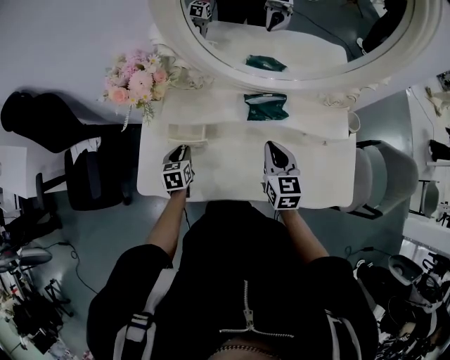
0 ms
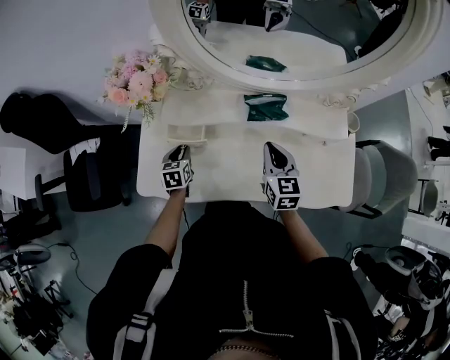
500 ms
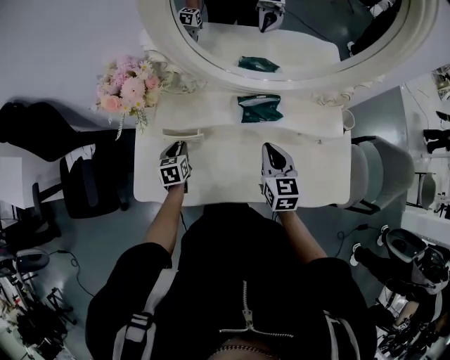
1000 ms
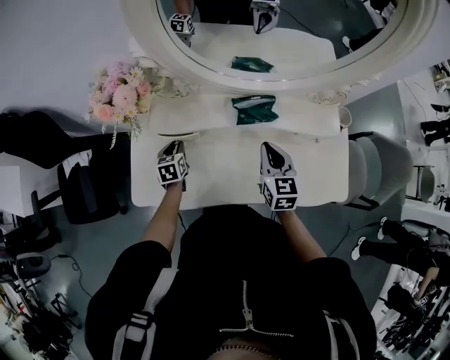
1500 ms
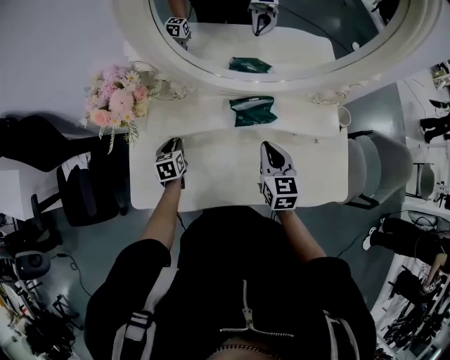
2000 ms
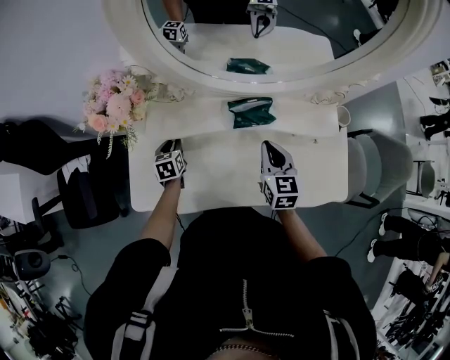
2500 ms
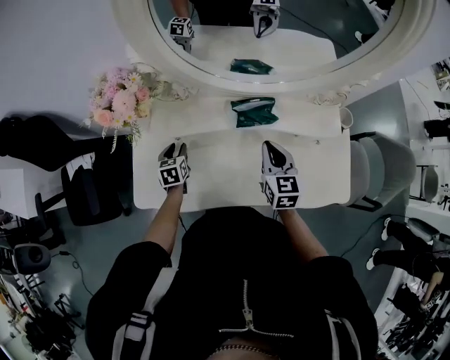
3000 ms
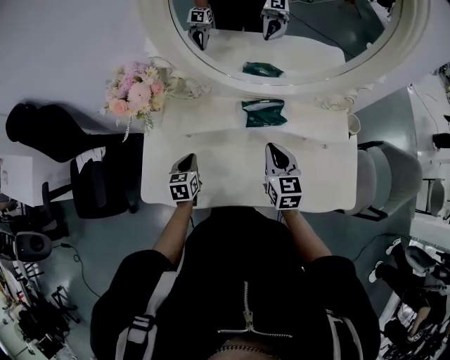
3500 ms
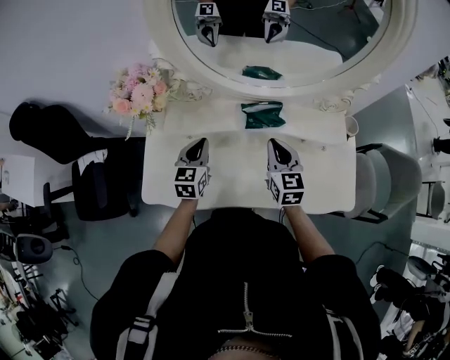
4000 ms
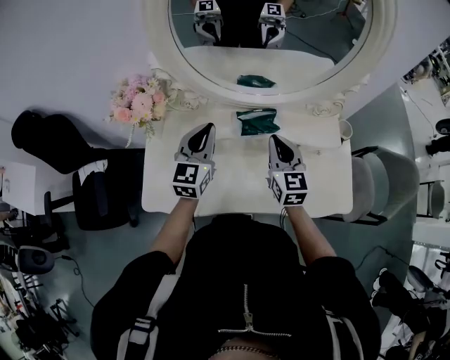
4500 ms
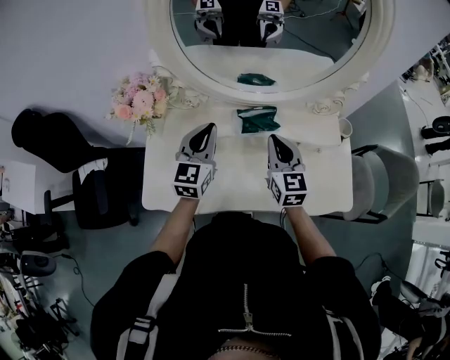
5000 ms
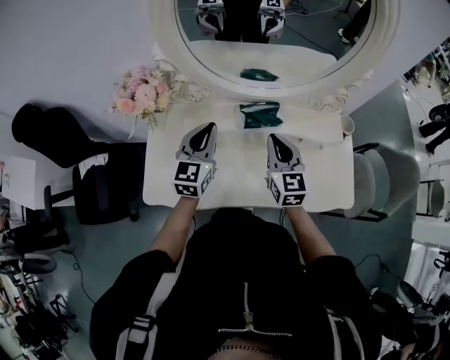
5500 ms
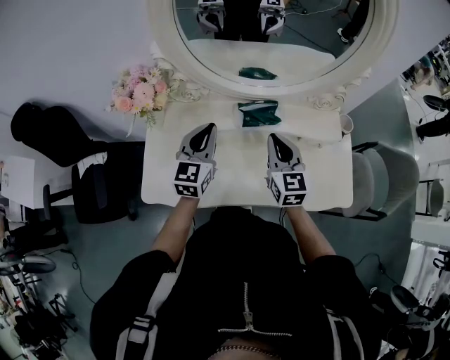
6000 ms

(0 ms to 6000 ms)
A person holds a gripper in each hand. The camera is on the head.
0 ms - 2000 ms: The left gripper is displaced forward by about 5 cm.
2000 ms - 4000 ms: The left gripper shifts roughly 15 cm upward and to the right, changes its angle by about 30 degrees, and closes up.
4000 ms - 6000 ms: The left gripper is displaced upward by about 10 cm; the right gripper shifts about 5 cm upward.

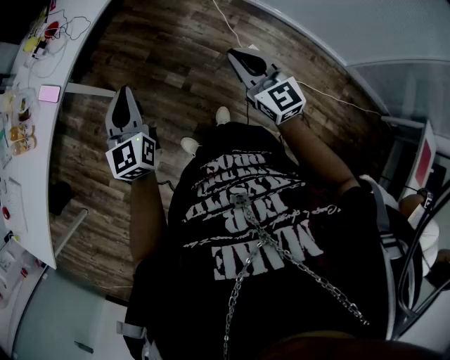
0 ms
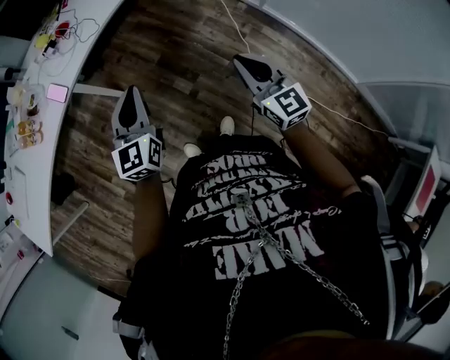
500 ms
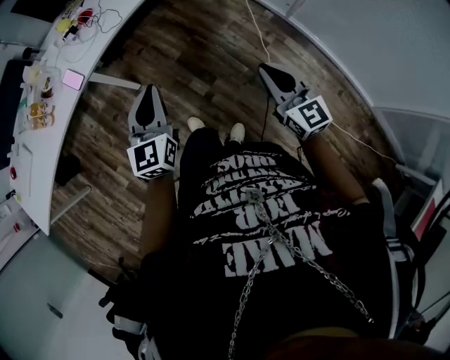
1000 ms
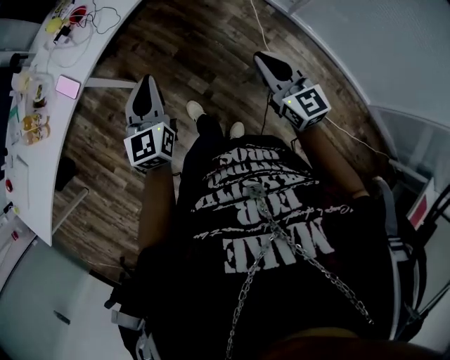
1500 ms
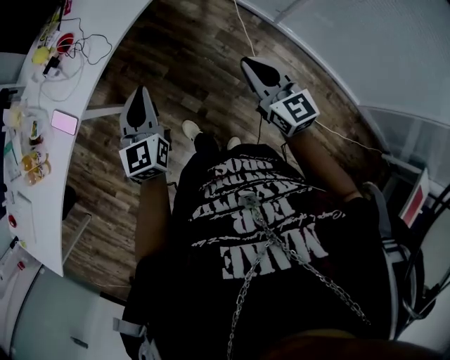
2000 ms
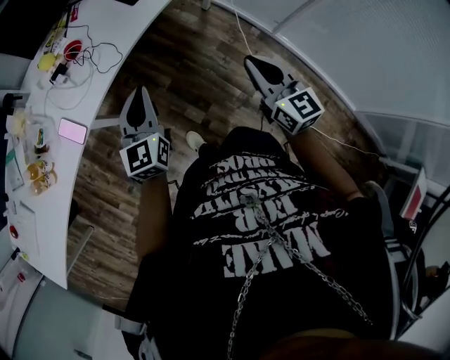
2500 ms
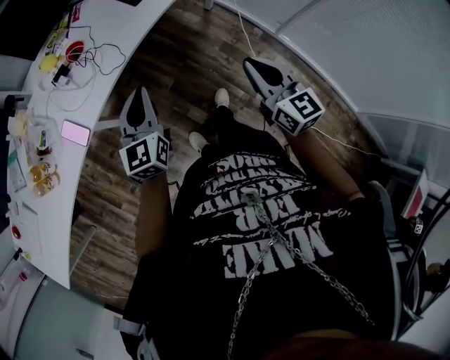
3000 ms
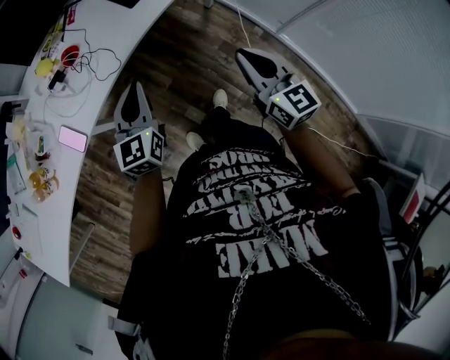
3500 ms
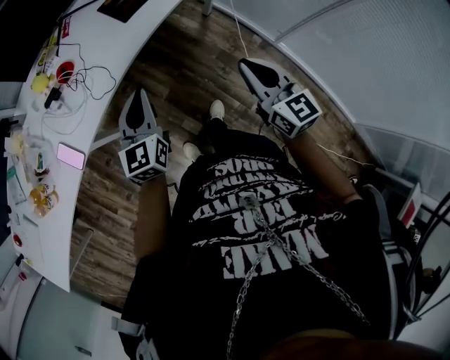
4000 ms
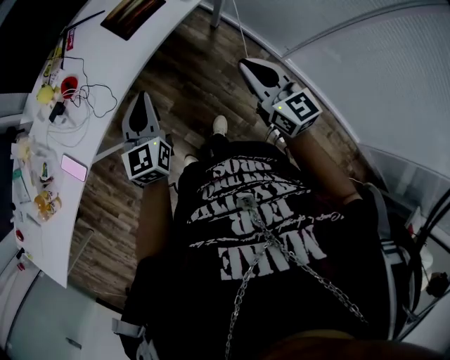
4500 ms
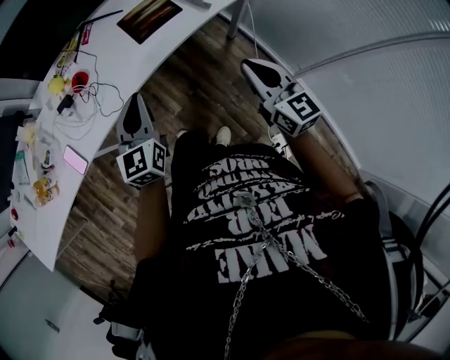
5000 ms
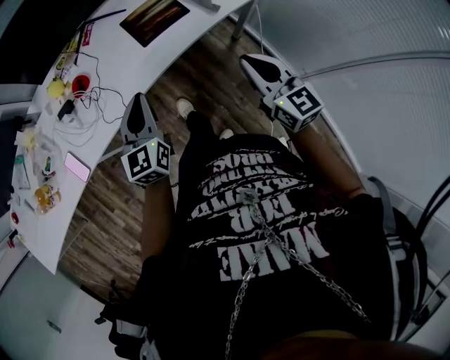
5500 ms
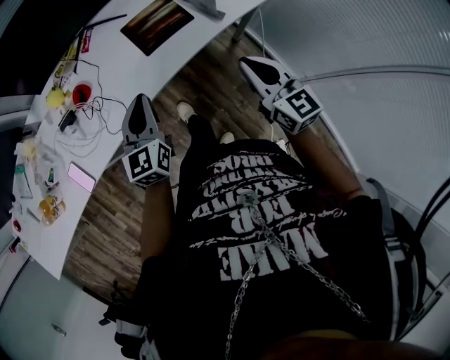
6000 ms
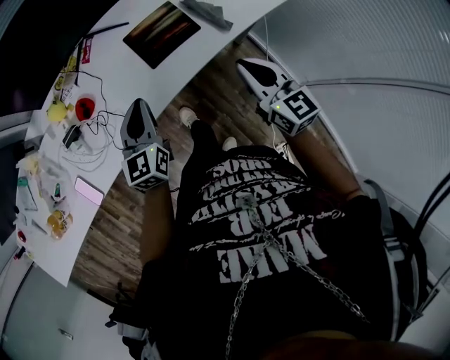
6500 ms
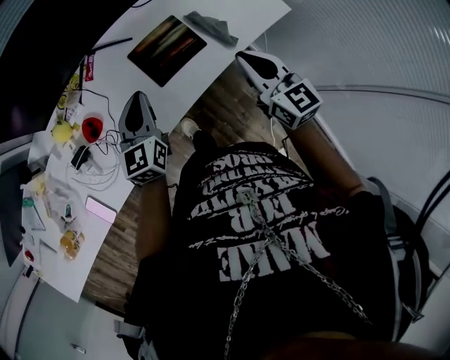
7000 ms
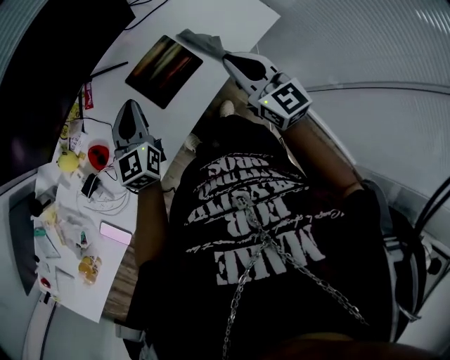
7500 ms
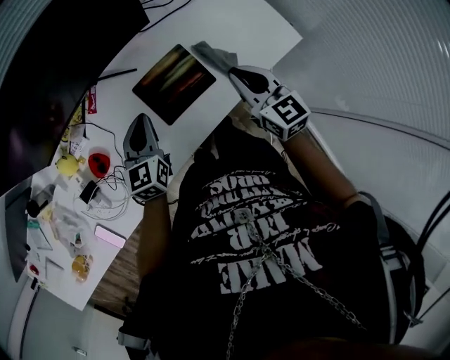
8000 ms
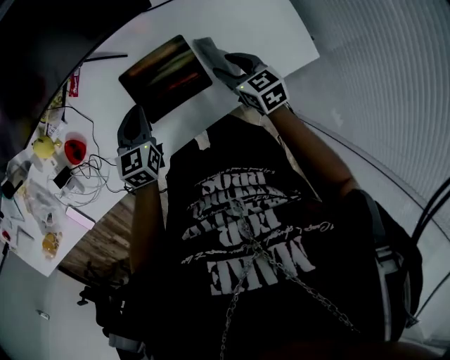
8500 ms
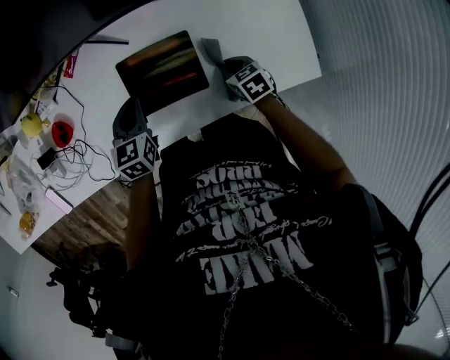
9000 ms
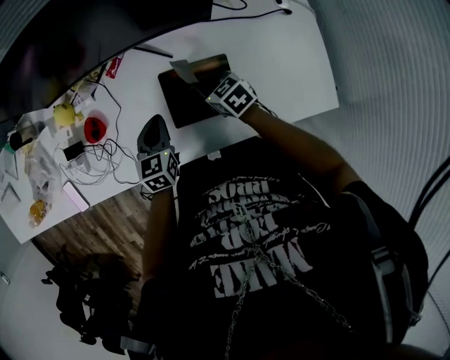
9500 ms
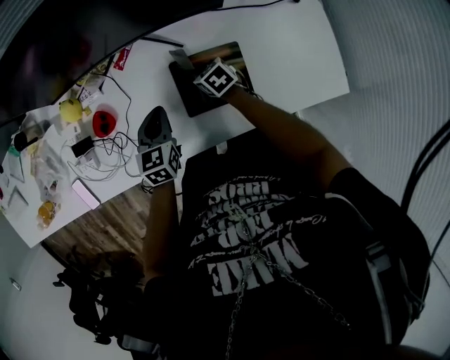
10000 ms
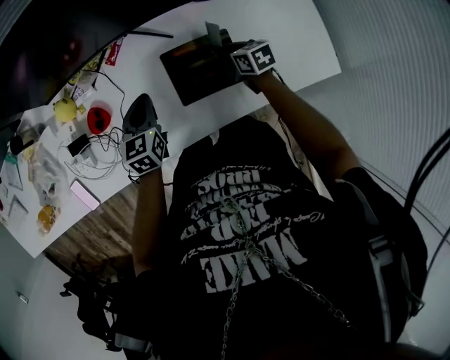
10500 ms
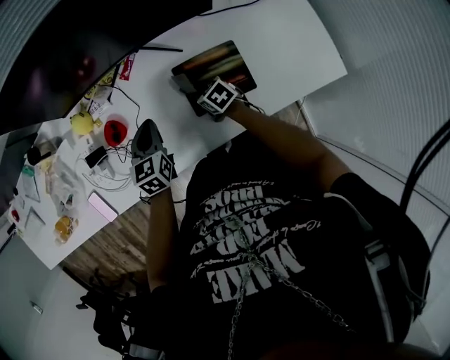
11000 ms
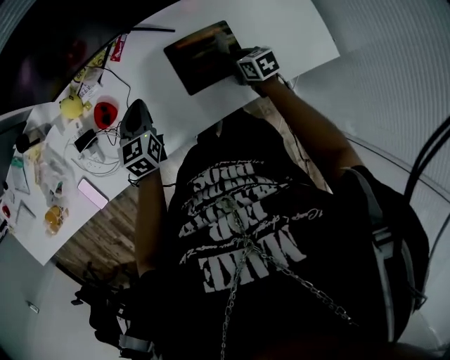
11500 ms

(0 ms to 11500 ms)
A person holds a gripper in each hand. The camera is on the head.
0 ms - 2000 ms: Both grippers travel together forward, about 25 cm.
2000 ms - 4000 ms: Both grippers travel together forward, about 15 cm.
4000 ms - 6000 ms: Both grippers travel together forward, some 20 cm.
6000 ms - 7500 ms: The grippers both shift forward by some 25 cm.
7500 ms - 9500 ms: The left gripper heads downward, covering approximately 15 cm, and swivels about 30 degrees. Meanwhile the right gripper shifts roughly 25 cm downward, tips its fingers downward by roughly 30 degrees, and opens and closes again.
9500 ms - 11500 ms: The right gripper moves left and right over roughly 15 cm, changing direction 2 times, and swivels approximately 20 degrees, while the left gripper travels to the left by about 10 cm.

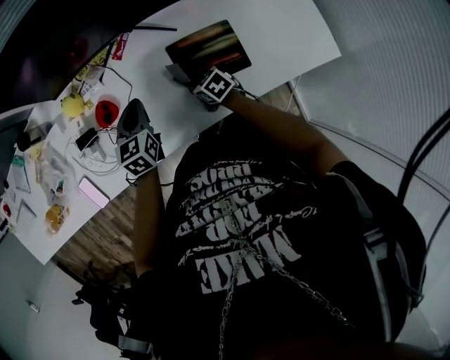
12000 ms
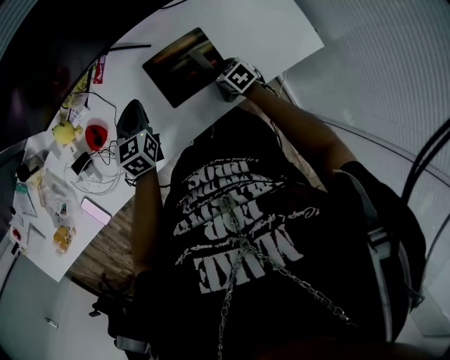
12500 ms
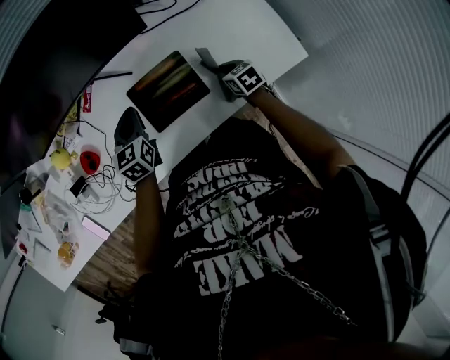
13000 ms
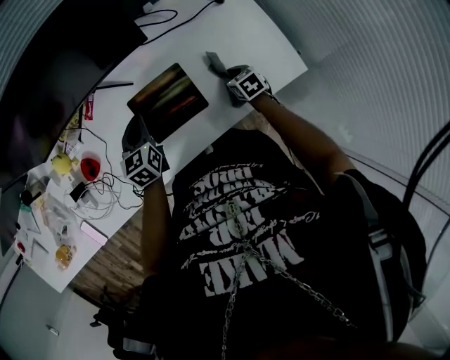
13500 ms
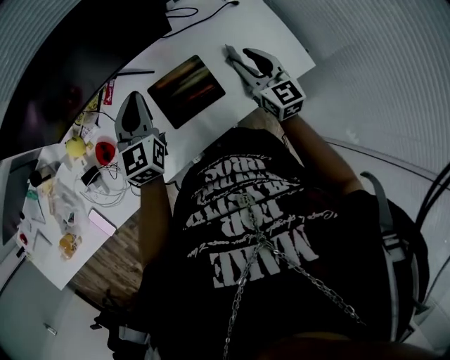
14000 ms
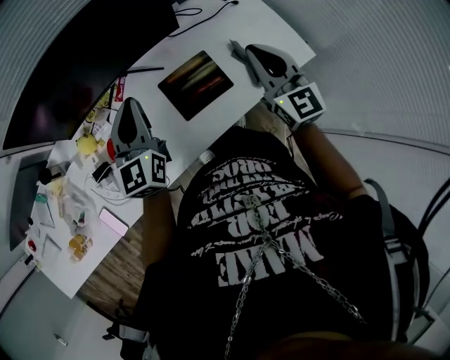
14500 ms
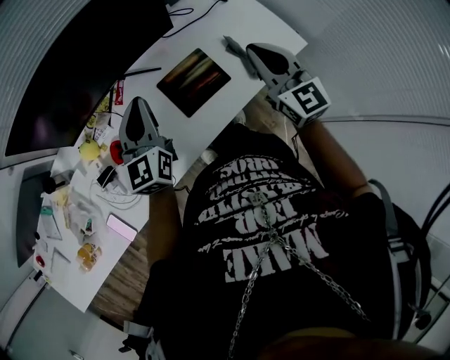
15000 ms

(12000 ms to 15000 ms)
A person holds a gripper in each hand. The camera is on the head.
12000 ms - 13500 ms: The left gripper goes some 20 cm to the right, while the right gripper moves to the right, some 35 cm, and turns by about 20 degrees.
13500 ms - 15000 ms: The left gripper moves upward, roughly 20 cm, and turns by approximately 30 degrees, while the right gripper goes some 40 cm upward, angles its fingers upward, by some 50 degrees, and opens and closes again.

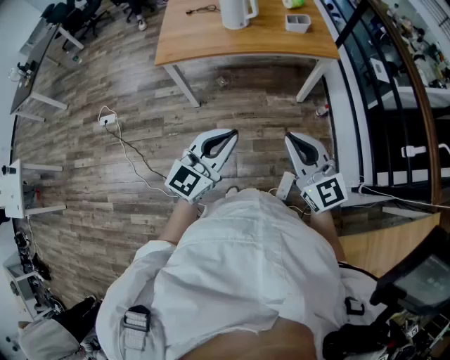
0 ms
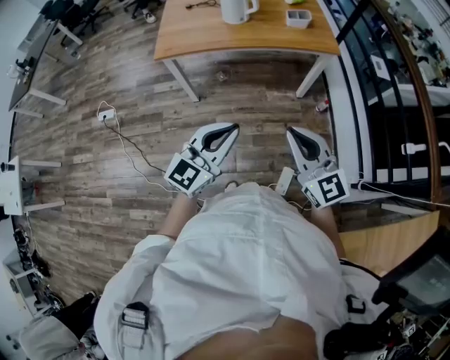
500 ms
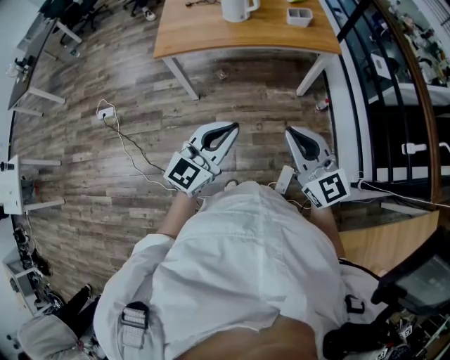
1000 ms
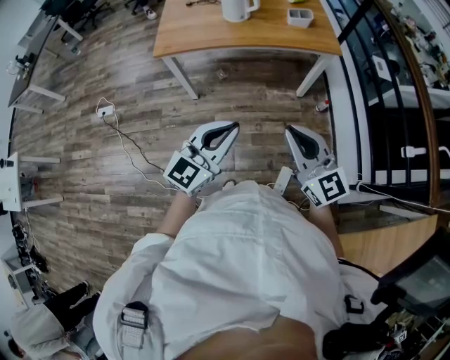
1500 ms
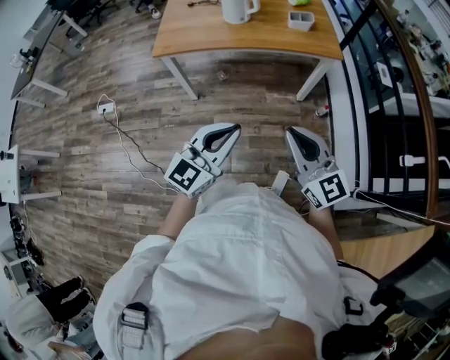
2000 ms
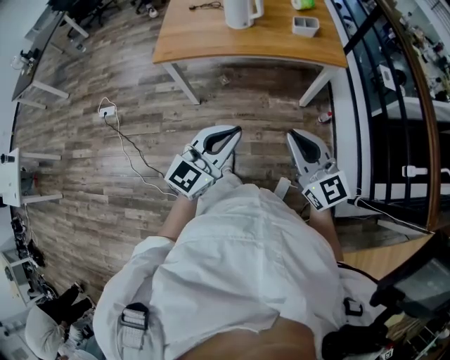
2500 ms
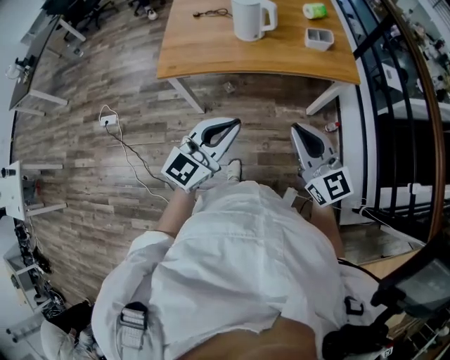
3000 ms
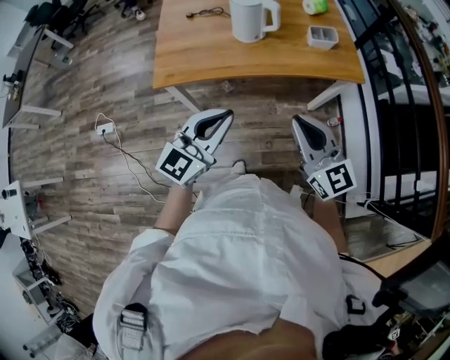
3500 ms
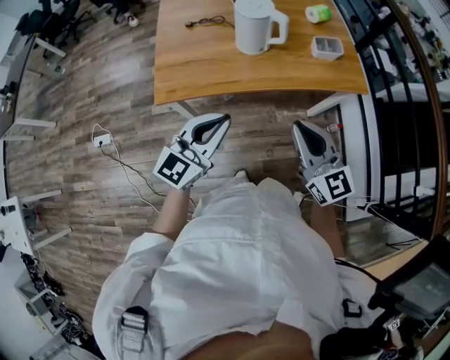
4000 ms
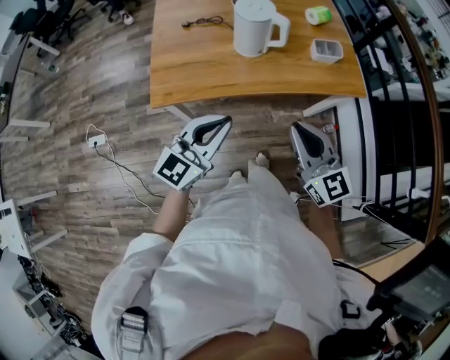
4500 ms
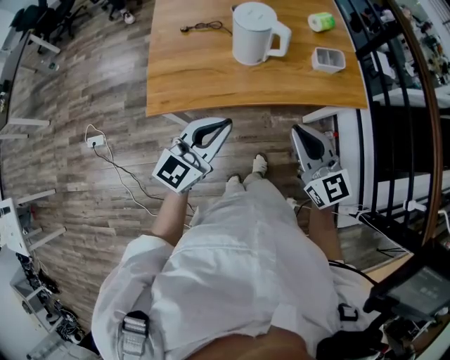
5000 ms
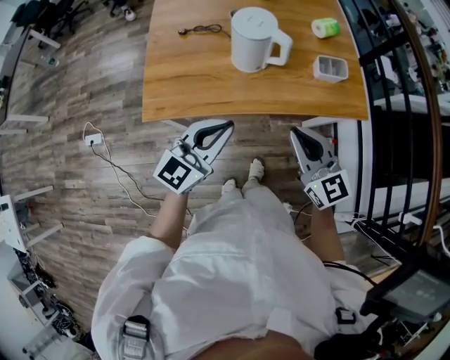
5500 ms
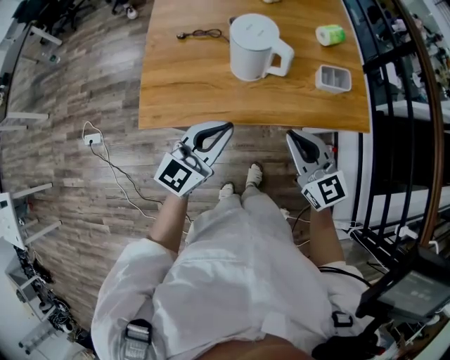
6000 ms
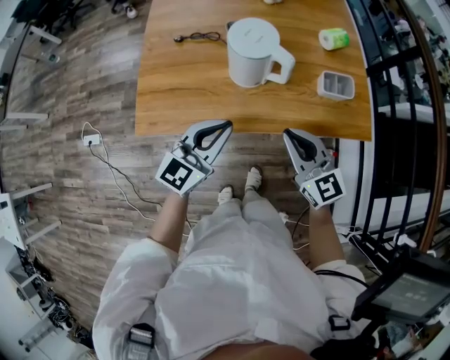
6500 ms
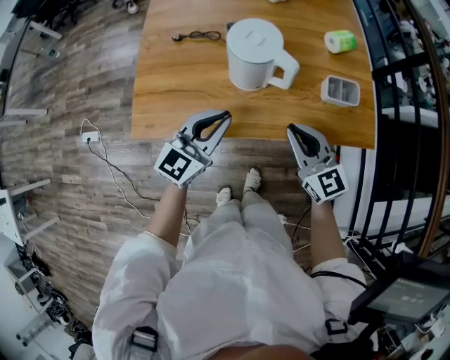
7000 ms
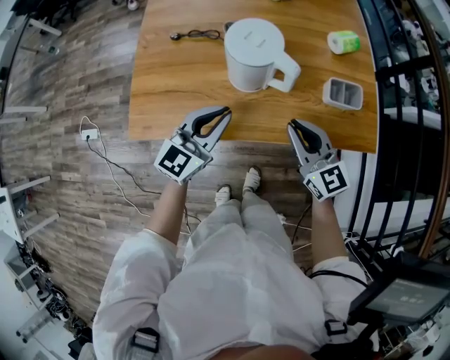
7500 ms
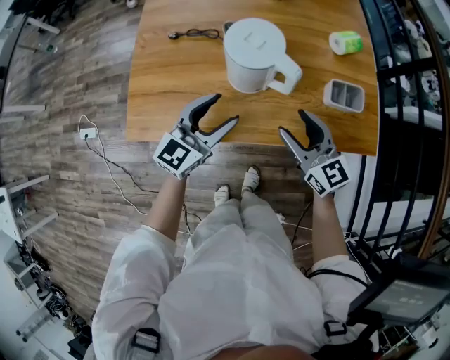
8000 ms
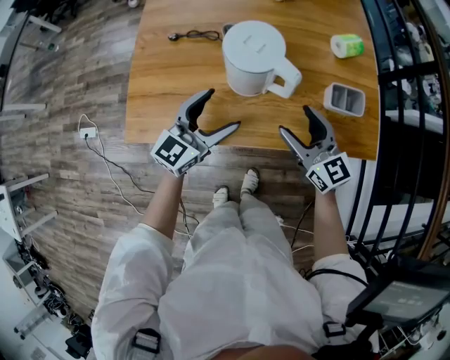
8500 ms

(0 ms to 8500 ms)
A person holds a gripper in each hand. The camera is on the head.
0 ms - 2000 ms: The grippers move only a little.
2000 ms - 4000 ms: Both grippers move forward and to the left, about 35 cm.
4000 ms - 6500 ms: The grippers both shift forward by roughly 20 cm.
6500 ms - 8500 ms: The grippers both shift forward and downward by roughly 10 cm. The right gripper opens up. Meanwhile the left gripper opens up.
